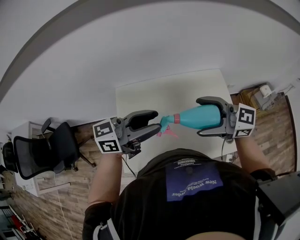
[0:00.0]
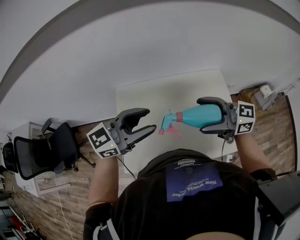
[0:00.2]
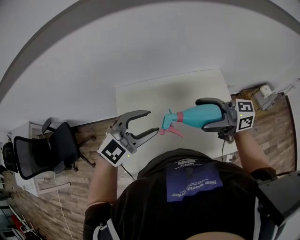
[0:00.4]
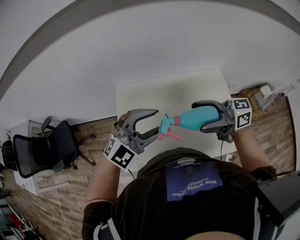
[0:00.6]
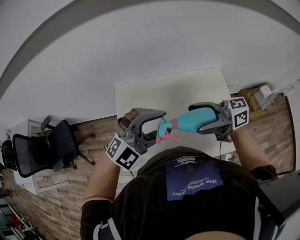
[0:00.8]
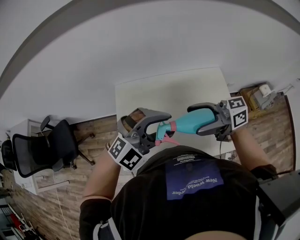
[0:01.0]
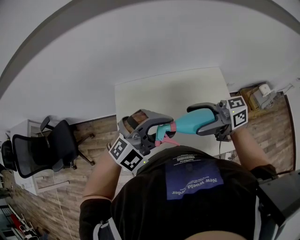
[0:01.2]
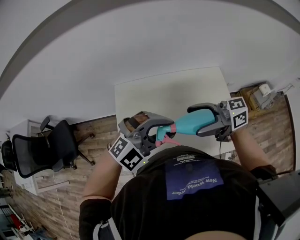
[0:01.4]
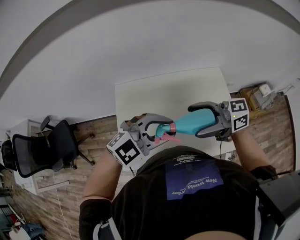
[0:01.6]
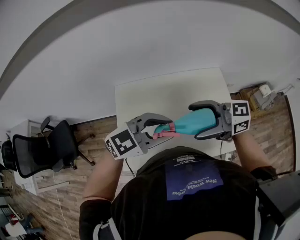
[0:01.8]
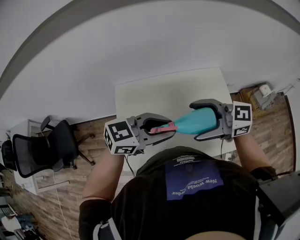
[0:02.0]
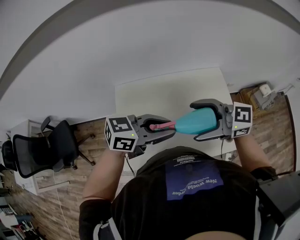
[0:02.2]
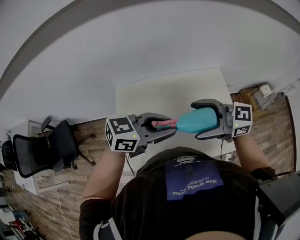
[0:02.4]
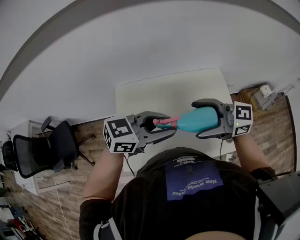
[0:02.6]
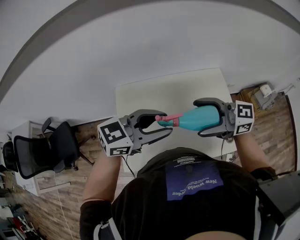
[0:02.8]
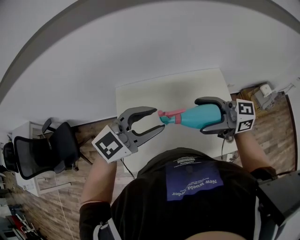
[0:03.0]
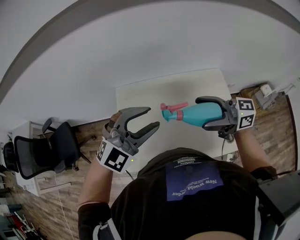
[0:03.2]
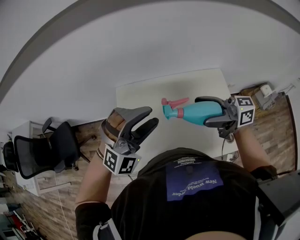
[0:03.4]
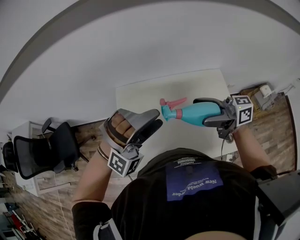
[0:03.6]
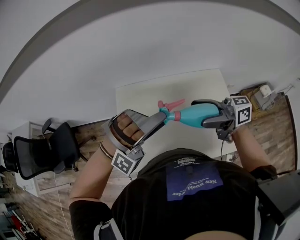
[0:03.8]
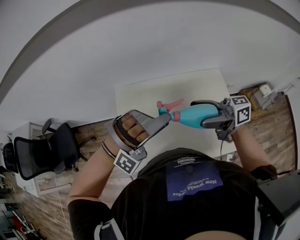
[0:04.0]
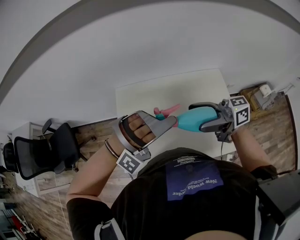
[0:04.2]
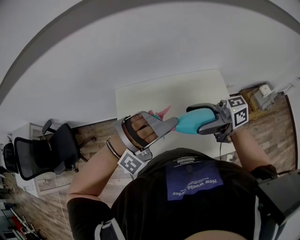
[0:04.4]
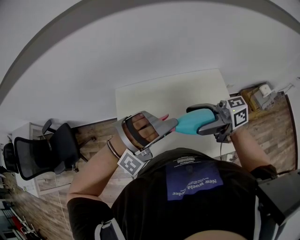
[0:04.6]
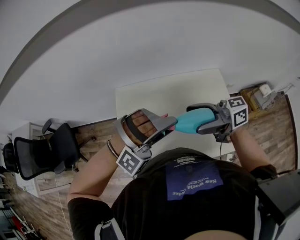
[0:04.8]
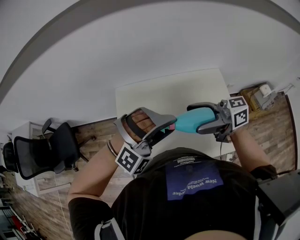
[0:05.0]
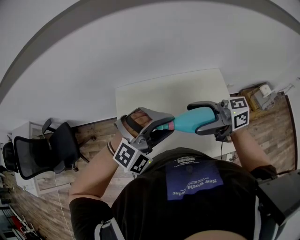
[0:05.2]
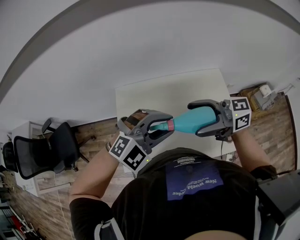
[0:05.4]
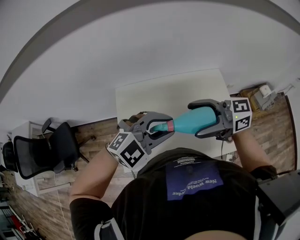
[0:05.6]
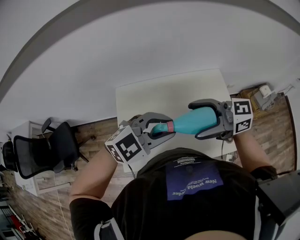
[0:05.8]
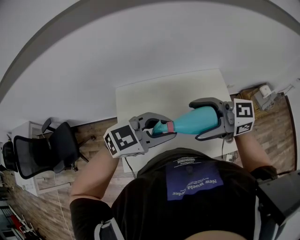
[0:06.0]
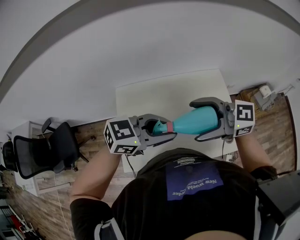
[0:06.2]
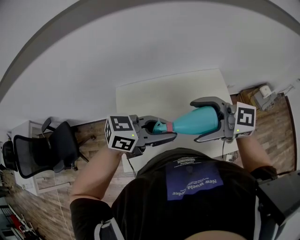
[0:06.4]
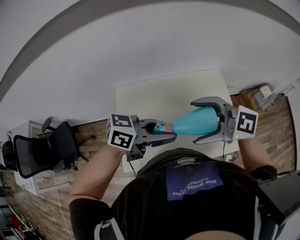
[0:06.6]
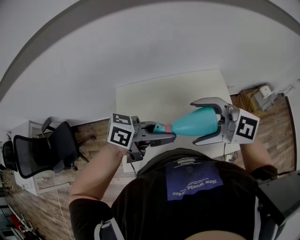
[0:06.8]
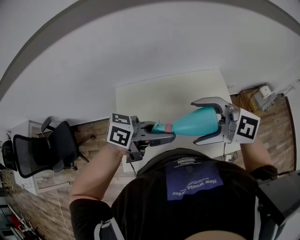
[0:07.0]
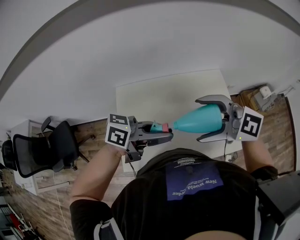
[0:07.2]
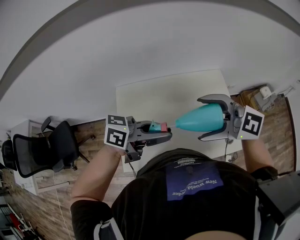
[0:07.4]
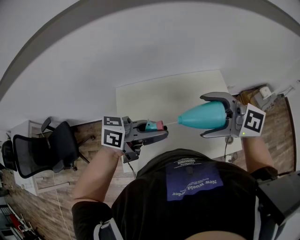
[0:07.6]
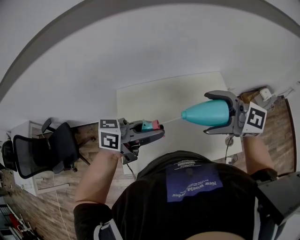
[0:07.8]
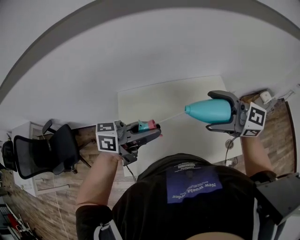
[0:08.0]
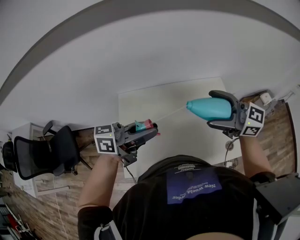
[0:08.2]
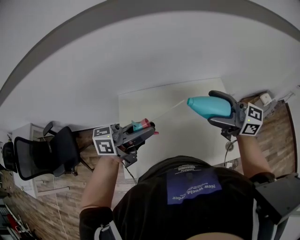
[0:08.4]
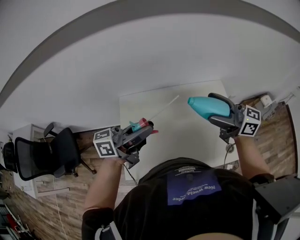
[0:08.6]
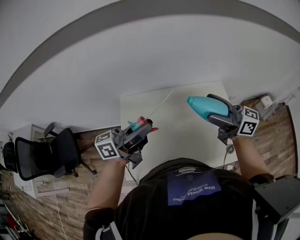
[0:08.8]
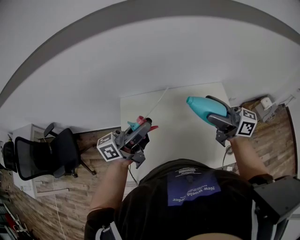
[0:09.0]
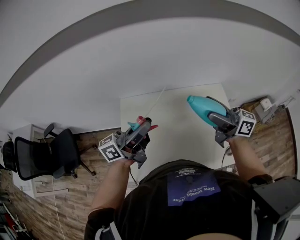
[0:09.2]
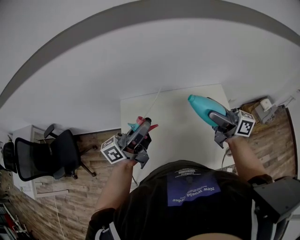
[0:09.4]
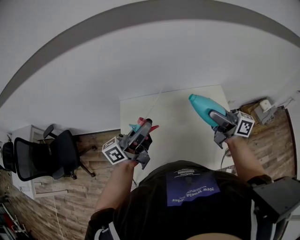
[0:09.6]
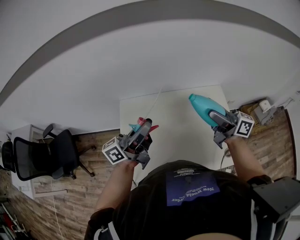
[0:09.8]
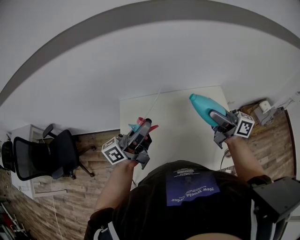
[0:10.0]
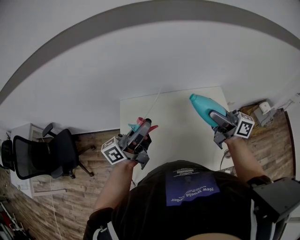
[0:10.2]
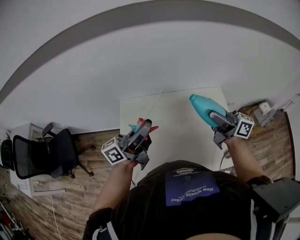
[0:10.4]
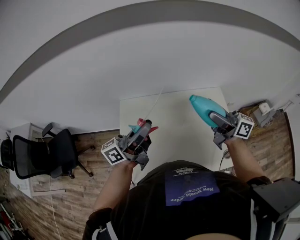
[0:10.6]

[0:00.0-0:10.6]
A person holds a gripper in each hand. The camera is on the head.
0:00.0 to 0:01.6: The left gripper changes place by about 10 cm, and rolls clockwise, seen from behind, by about 50 degrees. The right gripper rotates roughly 20 degrees.
0:01.6 to 0:03.0: The left gripper moves about 5 cm.
0:03.0 to 0:04.6: The right gripper turns by approximately 20 degrees; the left gripper ends up about 5 cm from where it was, and rotates around the line of its fingers by about 90 degrees, clockwise from behind.
0:04.6 to 0:06.0: The left gripper rolls counterclockwise, seen from behind, by about 90 degrees; the right gripper turns by some 30 degrees.
0:06.0 to 0:07.6: The right gripper changes its angle by approximately 30 degrees, while the left gripper rotates around the line of its fingers by some 40 degrees, counterclockwise from behind.
0:07.6 to 0:09.0: The left gripper shifts by roughly 10 cm, and rotates about 40 degrees. The right gripper moves roughly 10 cm, and swivels some 50 degrees.
0:09.0 to 0:10.6: The grippers stay close to where they were, moving slightly.

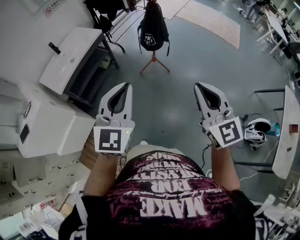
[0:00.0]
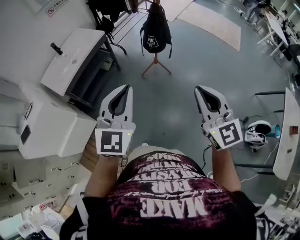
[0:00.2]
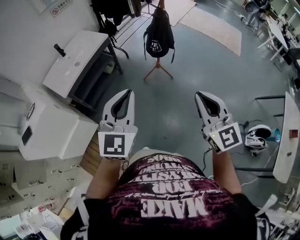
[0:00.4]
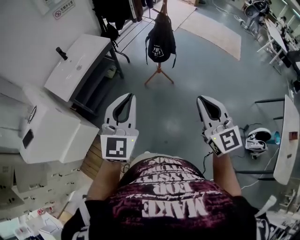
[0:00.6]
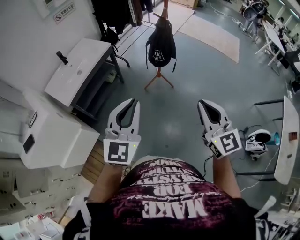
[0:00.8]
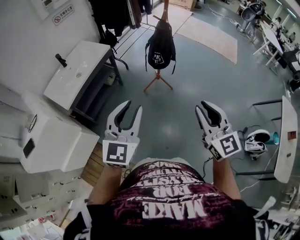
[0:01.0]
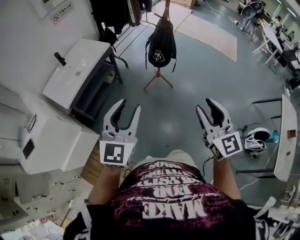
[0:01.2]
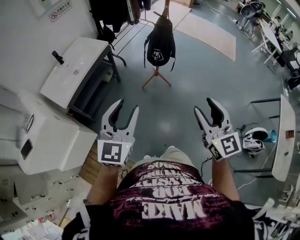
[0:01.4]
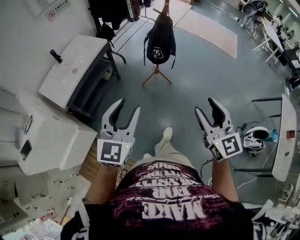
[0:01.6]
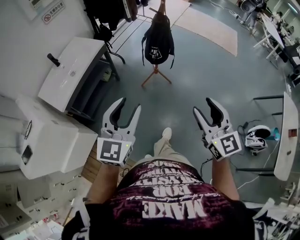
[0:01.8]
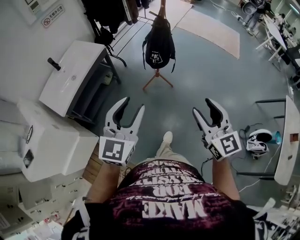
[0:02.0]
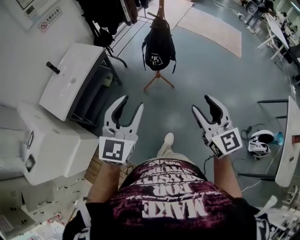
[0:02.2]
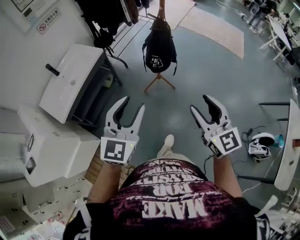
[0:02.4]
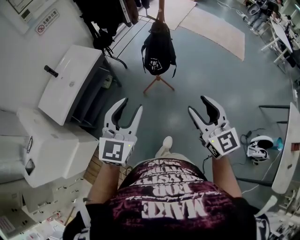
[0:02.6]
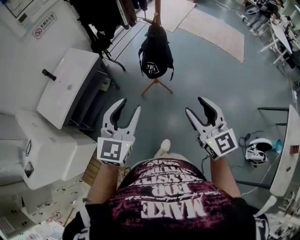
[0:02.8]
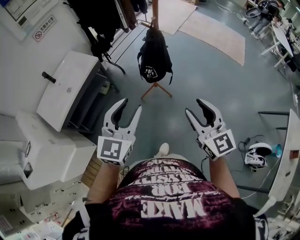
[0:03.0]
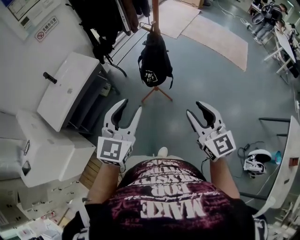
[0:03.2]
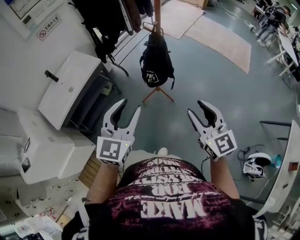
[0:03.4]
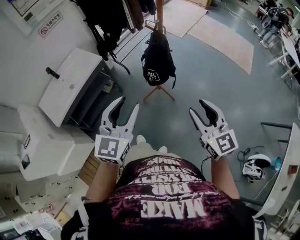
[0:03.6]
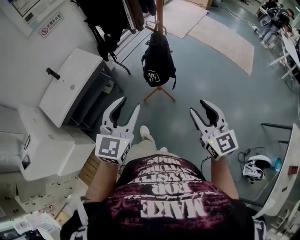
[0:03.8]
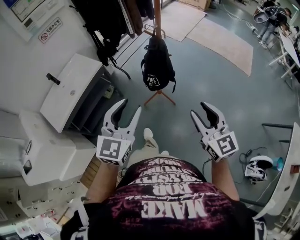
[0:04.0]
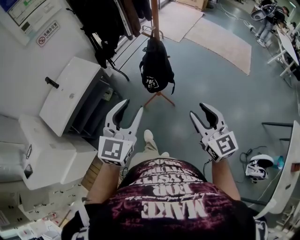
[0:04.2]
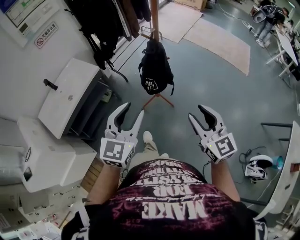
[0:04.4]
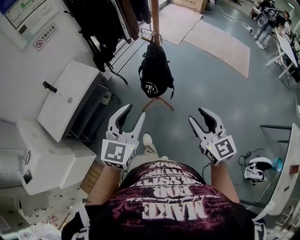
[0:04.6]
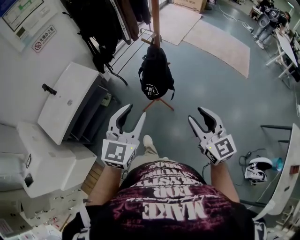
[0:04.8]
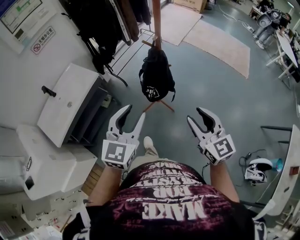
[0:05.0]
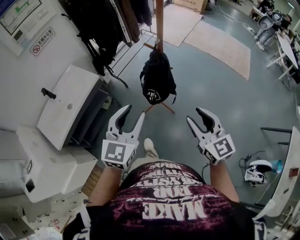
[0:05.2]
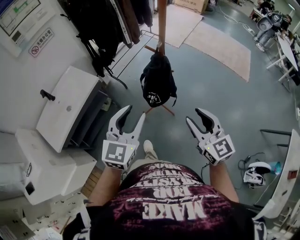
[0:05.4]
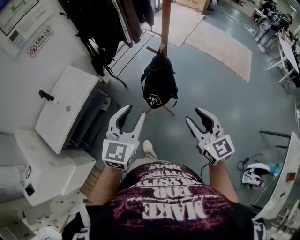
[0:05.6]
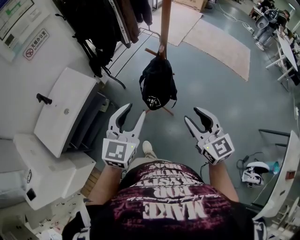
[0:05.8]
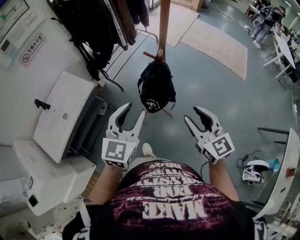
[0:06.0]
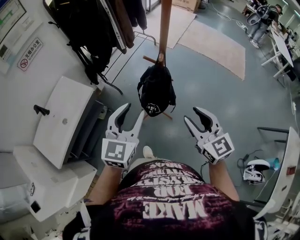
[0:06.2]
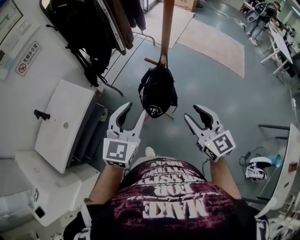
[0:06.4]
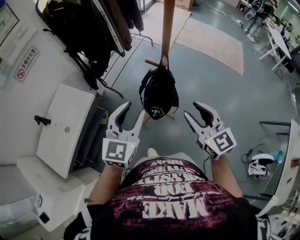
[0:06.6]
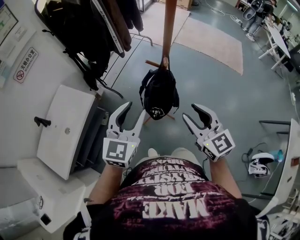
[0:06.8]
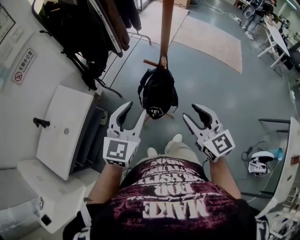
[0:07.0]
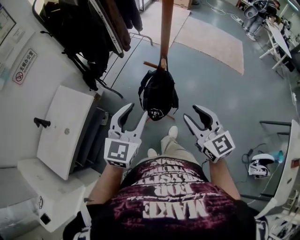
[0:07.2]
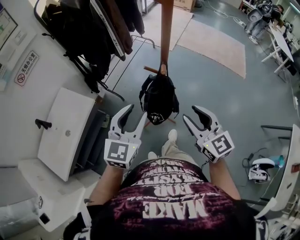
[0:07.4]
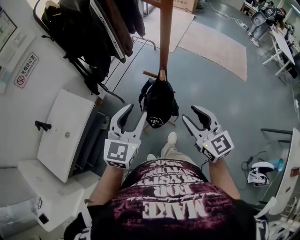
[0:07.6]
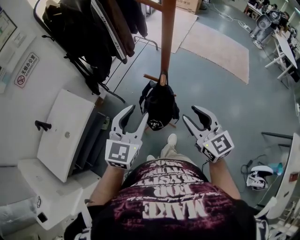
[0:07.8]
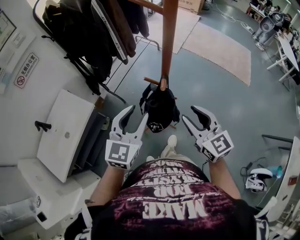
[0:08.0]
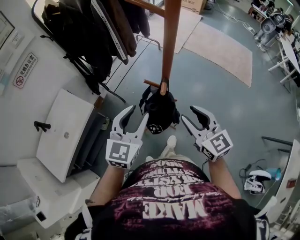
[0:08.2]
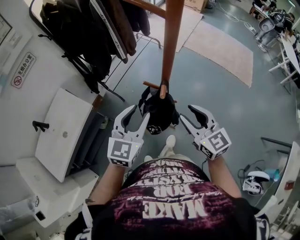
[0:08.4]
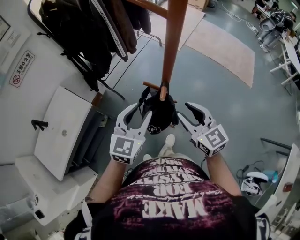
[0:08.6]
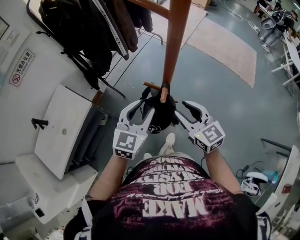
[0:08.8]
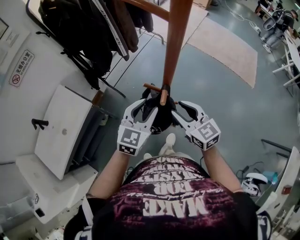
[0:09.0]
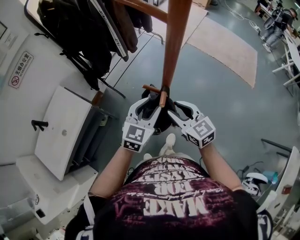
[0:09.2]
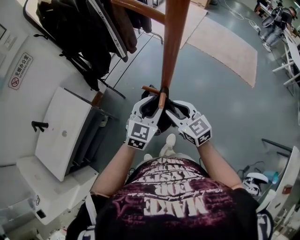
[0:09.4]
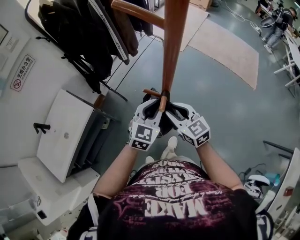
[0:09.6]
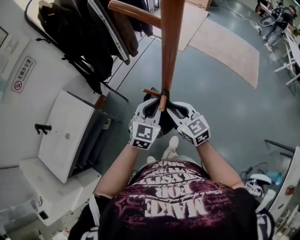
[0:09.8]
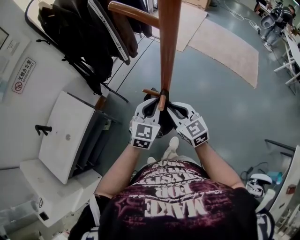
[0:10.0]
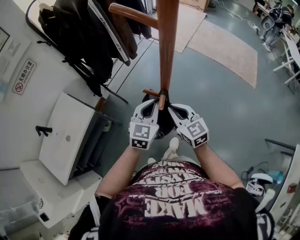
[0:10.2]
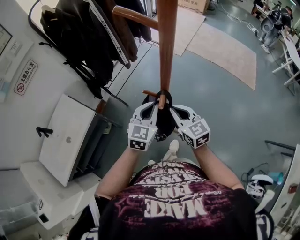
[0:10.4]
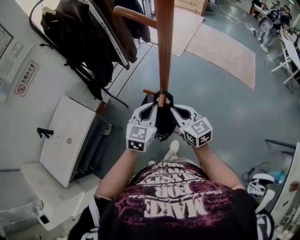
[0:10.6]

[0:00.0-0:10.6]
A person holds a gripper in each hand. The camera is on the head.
0:00.0 to 0:01.6: The left gripper moves to the left, about 10 cm, and opens its fingers; the right gripper is displaced to the left by about 5 cm, and opens its fingers.
0:01.6 to 0:03.0: The right gripper goes approximately 20 cm forward, while the left gripper moves forward and to the right, approximately 25 cm.
0:03.0 to 0:04.6: Both grippers travel together forward, some 5 cm.
0:04.6 to 0:06.0: Both grippers move forward, some 15 cm.
0:06.0 to 0:07.6: The two grippers go roughly 10 cm forward.
0:07.6 to 0:09.0: The right gripper goes about 15 cm forward and downward. The left gripper shifts some 15 cm forward, downward and to the right.
0:09.0 to 0:10.6: The right gripper closes its fingers. Meanwhile the left gripper closes up.

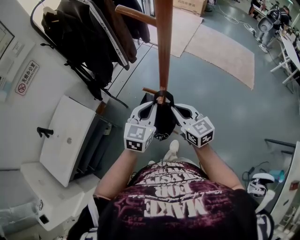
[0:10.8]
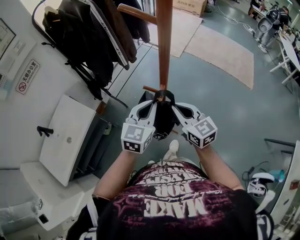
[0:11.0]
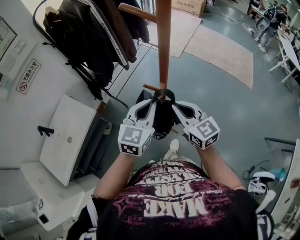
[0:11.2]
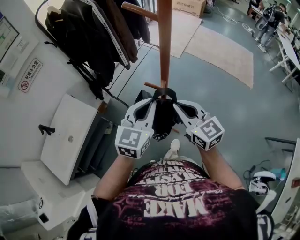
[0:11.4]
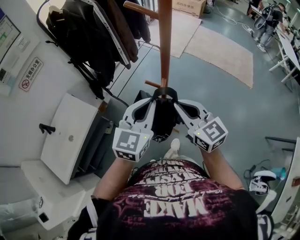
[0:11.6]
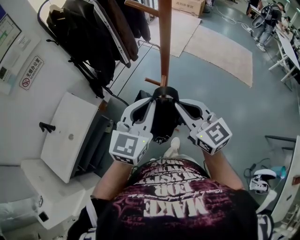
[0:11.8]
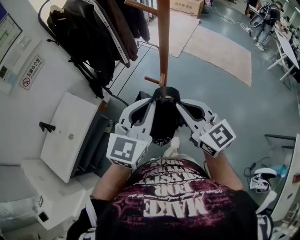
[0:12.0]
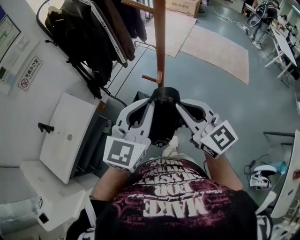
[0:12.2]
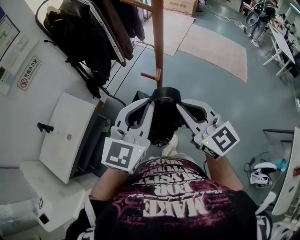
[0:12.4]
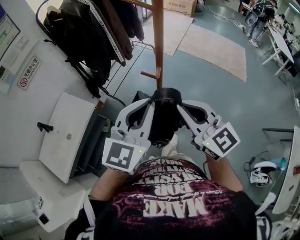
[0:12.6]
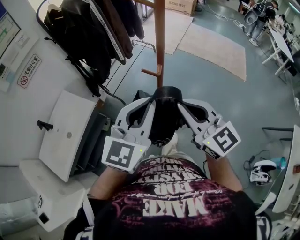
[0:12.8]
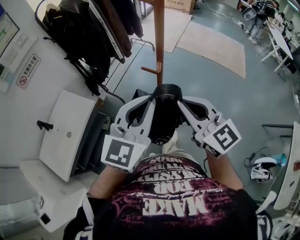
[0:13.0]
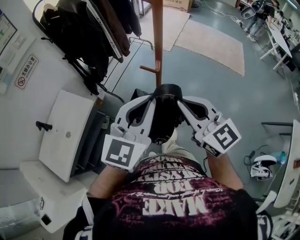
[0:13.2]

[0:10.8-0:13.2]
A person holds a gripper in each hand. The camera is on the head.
0:10.8 to 0:12.0: Both grippers travel together upward and backward, some 20 cm.
0:12.0 to 0:13.2: The two grippers go approximately 5 cm backward.
